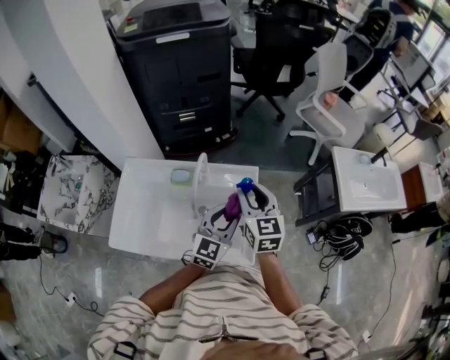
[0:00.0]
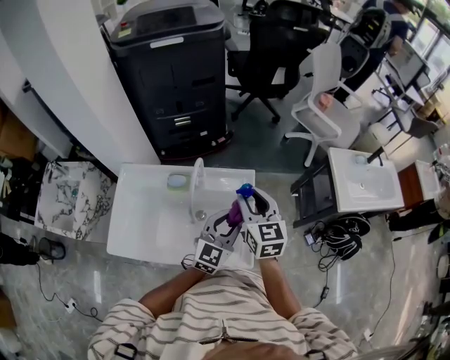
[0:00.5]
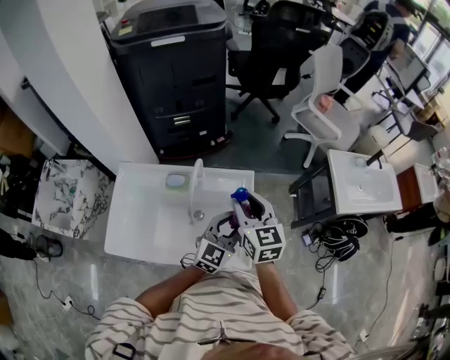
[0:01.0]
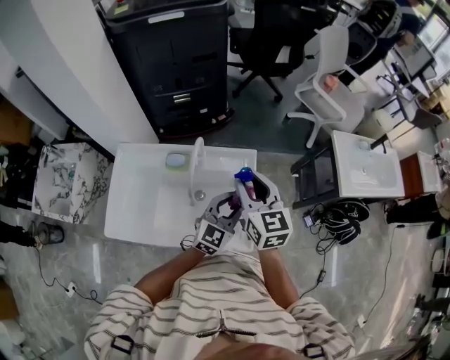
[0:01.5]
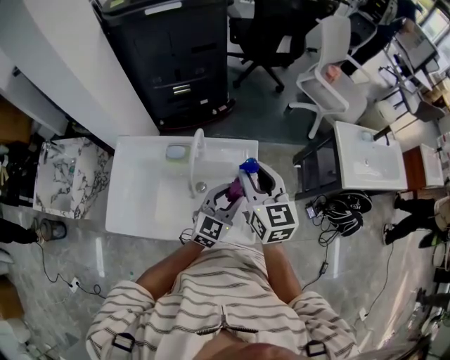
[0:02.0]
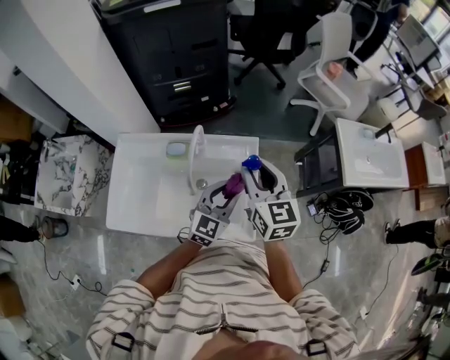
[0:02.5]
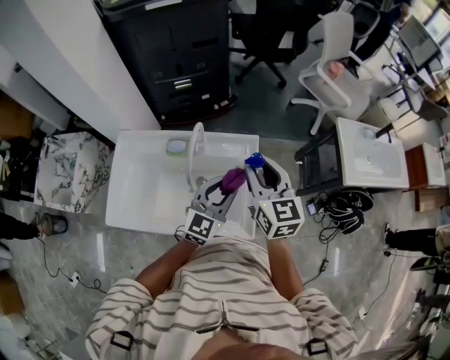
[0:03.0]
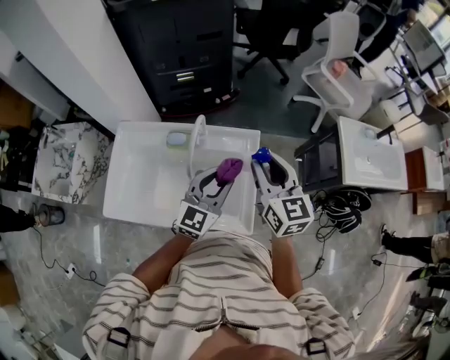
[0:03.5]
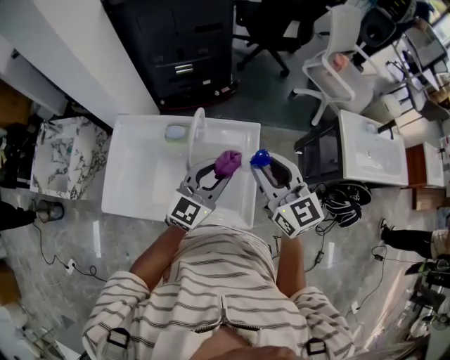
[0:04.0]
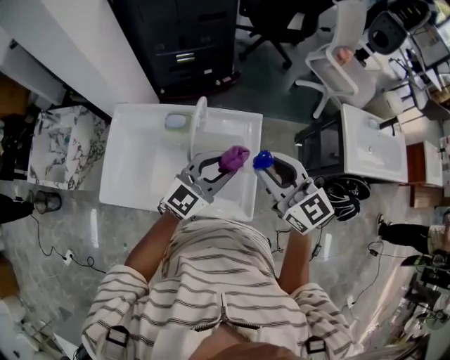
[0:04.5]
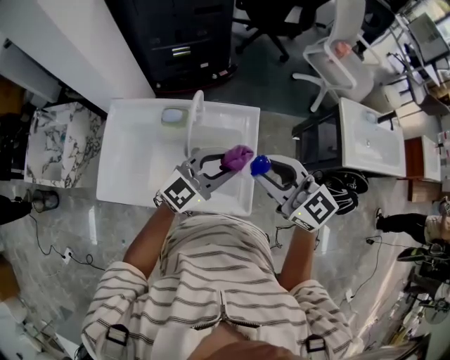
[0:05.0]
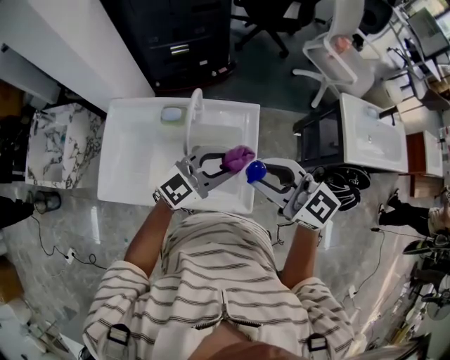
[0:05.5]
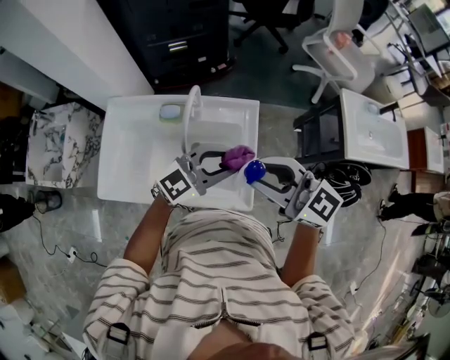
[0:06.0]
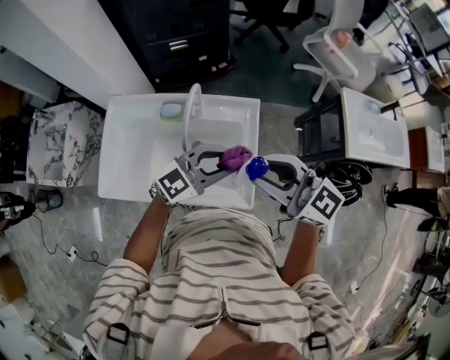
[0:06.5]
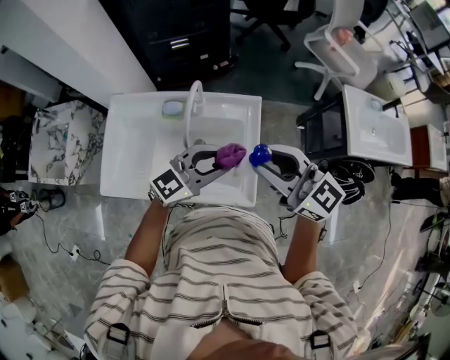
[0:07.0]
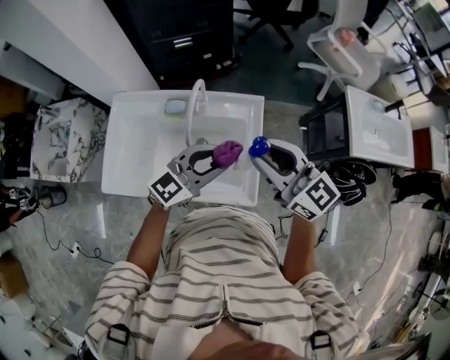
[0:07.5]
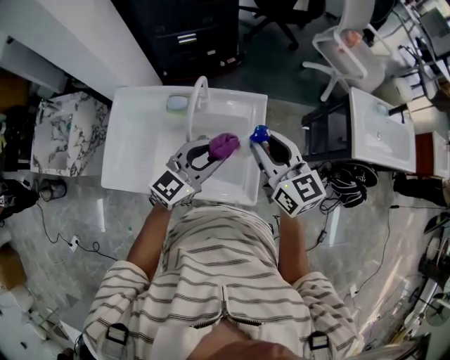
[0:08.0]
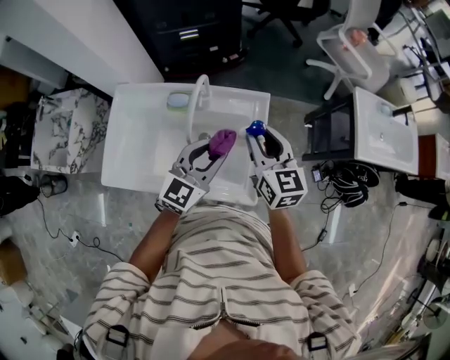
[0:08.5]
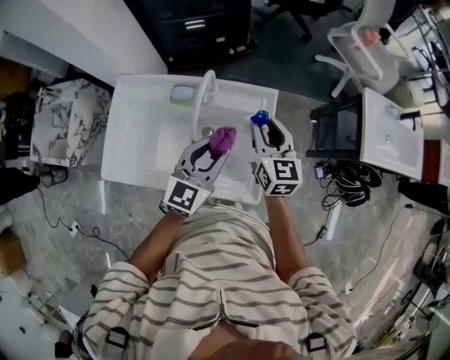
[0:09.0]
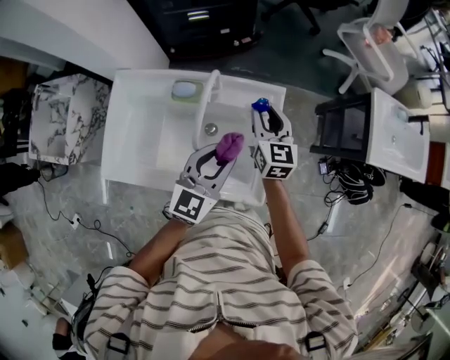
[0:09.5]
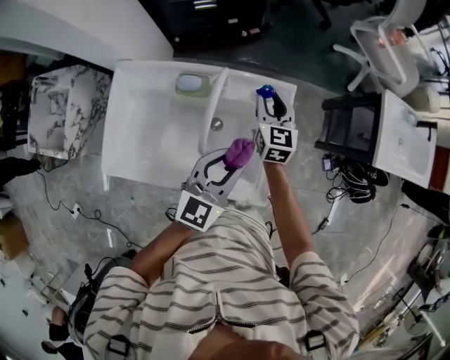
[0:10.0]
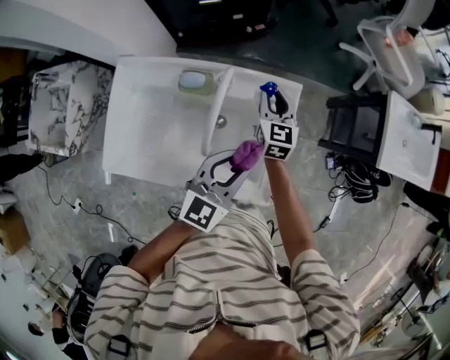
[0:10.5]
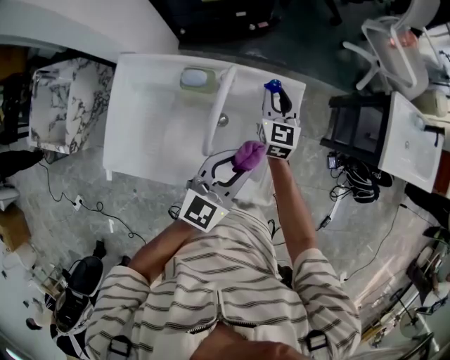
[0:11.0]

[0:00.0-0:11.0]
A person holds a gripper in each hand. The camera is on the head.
0:00.0 to 0:02.0: The grippers make only small movements.
0:02.0 to 0:03.5: The left gripper goes about 5 cm upward.
0:03.5 to 0:05.5: The right gripper ends up roughly 10 cm from where it was, and swivels approximately 40 degrees; the left gripper swivels roughly 30 degrees.
0:05.5 to 0:07.5: The grippers stay close to where they were, moving slightly.
0:07.5 to 0:09.0: The right gripper is displaced downward and forward by about 15 cm, and turns by about 30 degrees; the left gripper ends up roughly 5 cm from where it was, and swivels some 30 degrees.
0:09.0 to 0:11.0: The right gripper goes roughly 15 cm downward and forward.

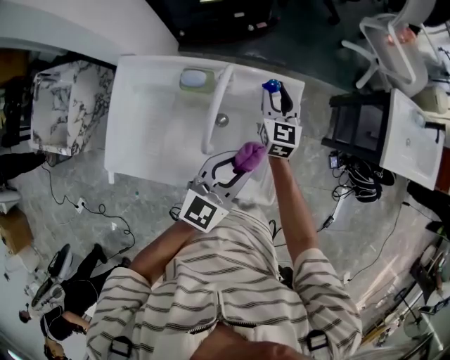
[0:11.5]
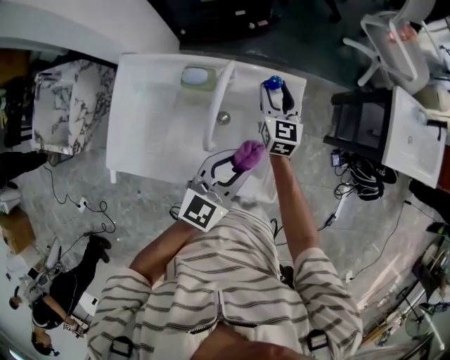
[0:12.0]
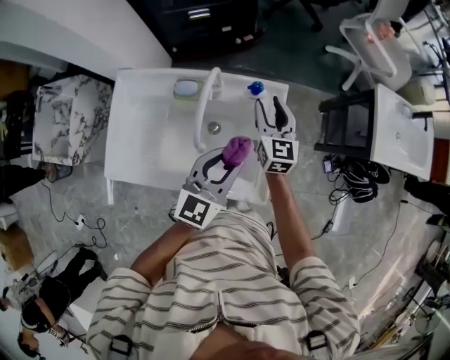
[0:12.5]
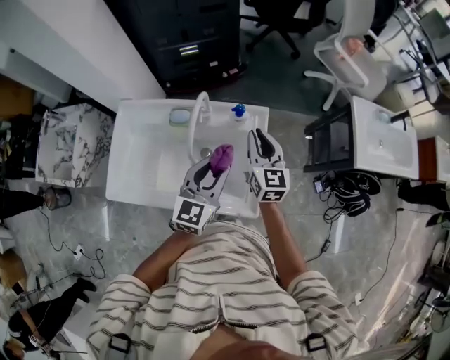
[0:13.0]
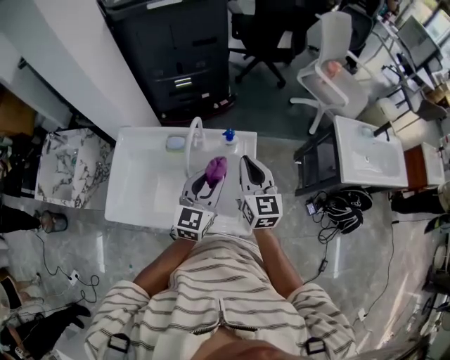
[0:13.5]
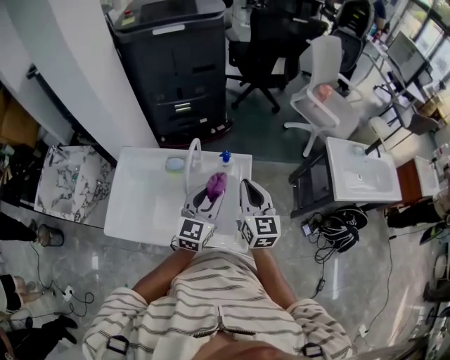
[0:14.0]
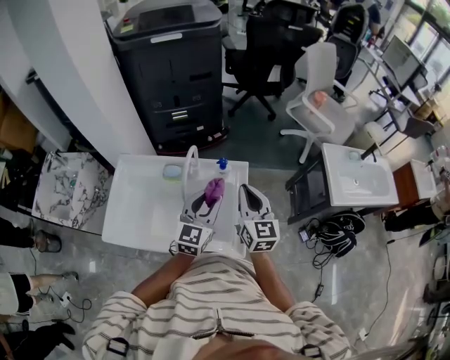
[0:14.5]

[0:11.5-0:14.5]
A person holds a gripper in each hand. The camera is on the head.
0:11.5 to 0:13.0: The right gripper travels upward, backward and to the right by roughly 15 cm.
0:13.0 to 0:14.5: The right gripper shifts some 10 cm upward and backward.

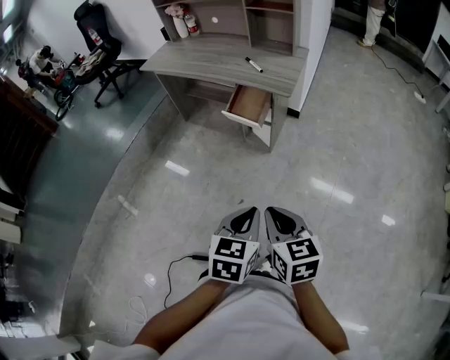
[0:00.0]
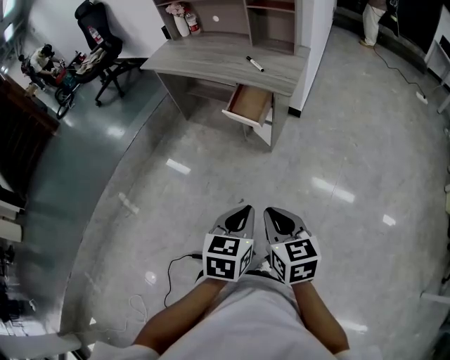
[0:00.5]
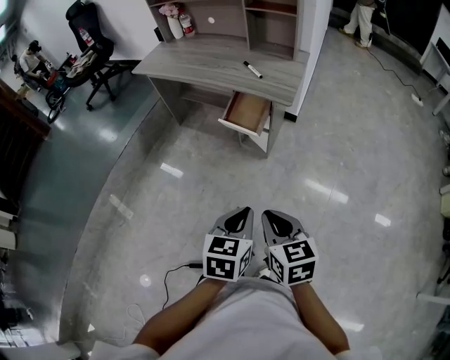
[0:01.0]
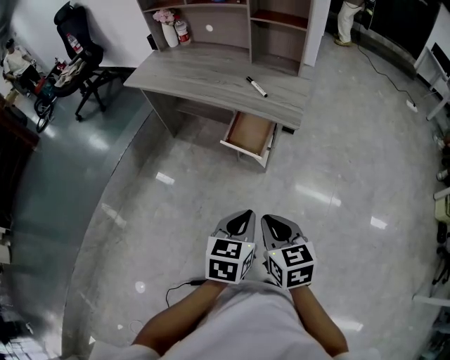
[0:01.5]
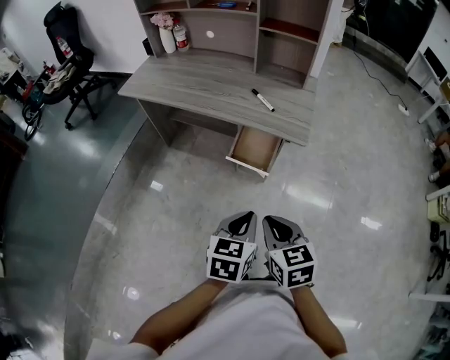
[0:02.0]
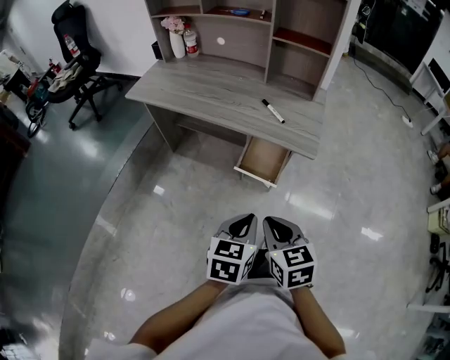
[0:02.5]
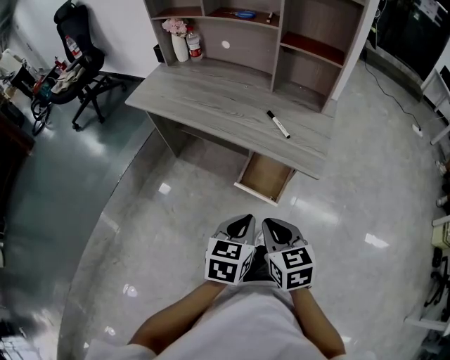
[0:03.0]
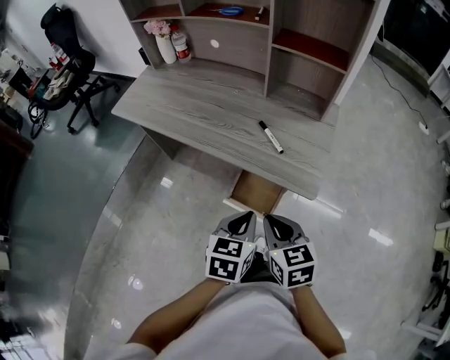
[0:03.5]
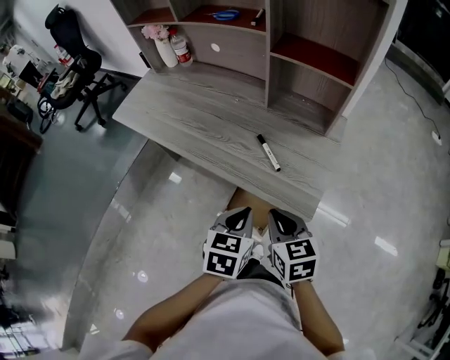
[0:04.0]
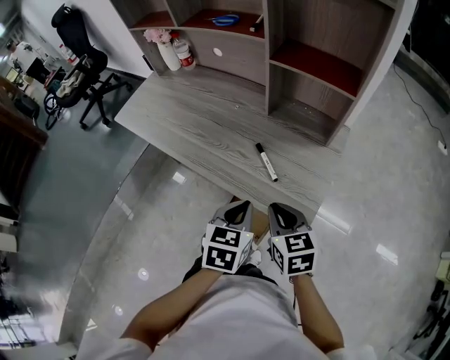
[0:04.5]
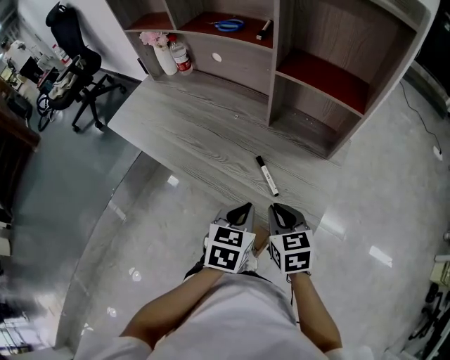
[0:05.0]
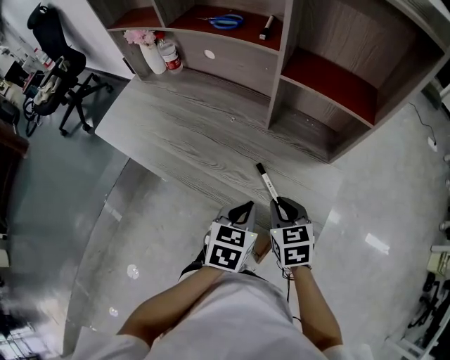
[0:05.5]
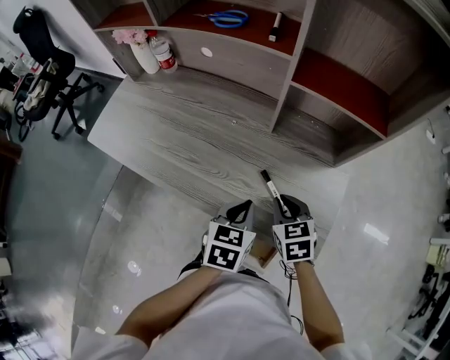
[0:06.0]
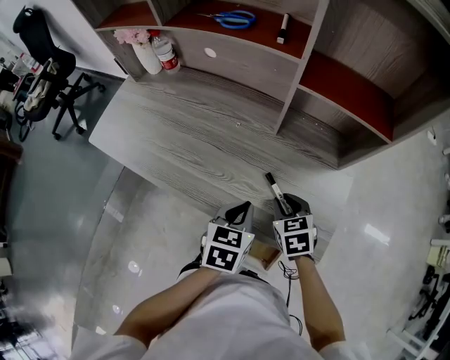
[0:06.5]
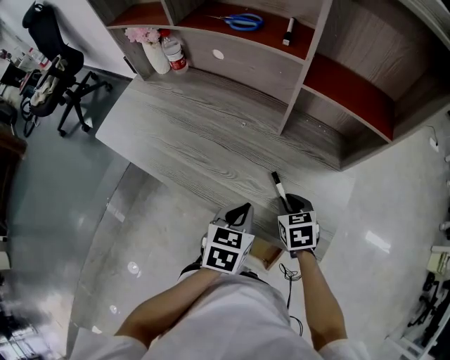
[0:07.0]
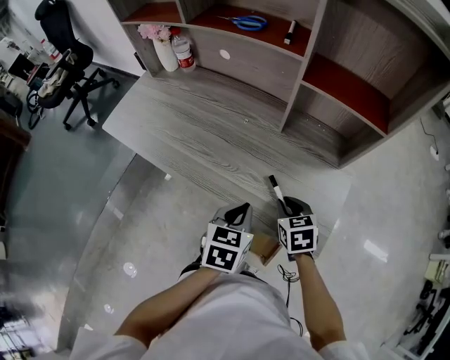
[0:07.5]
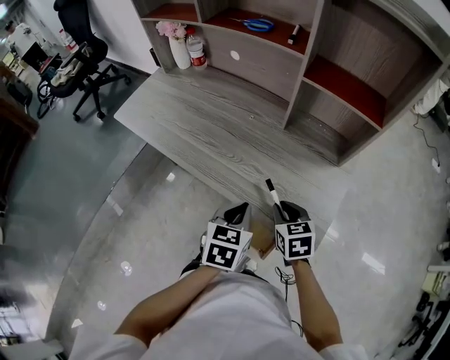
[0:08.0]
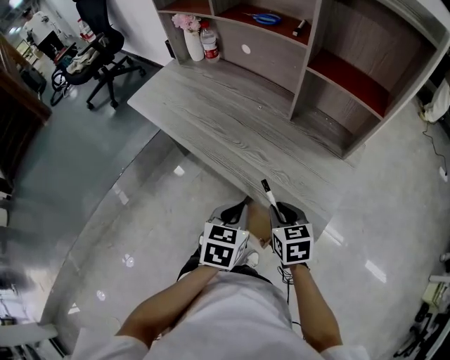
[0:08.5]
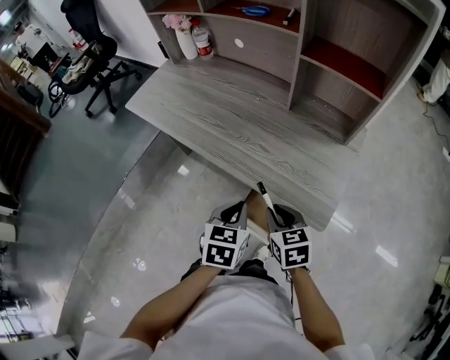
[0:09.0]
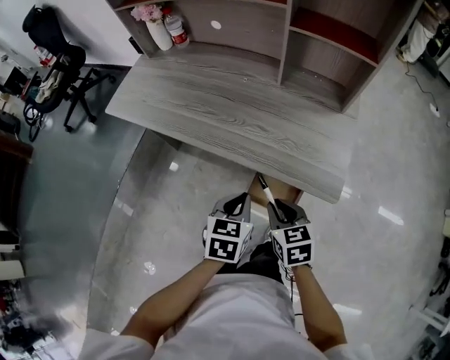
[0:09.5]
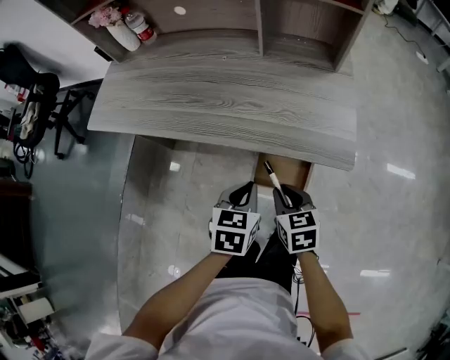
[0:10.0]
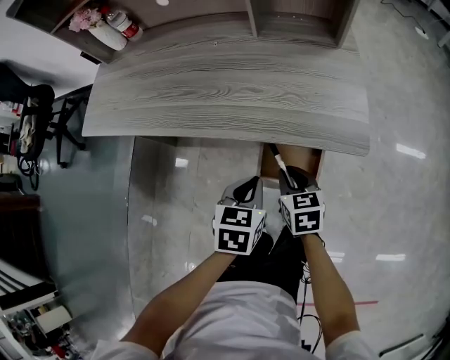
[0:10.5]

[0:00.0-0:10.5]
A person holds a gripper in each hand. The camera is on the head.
0:00.0 to 0:02.0: The grippers both shift forward and to the left by approximately 25 cm.
0:02.0 to 0:04.0: Both grippers move forward, roughly 30 cm.
0:04.0 to 0:06.5: The right gripper goes roughly 20 cm forward and downward. Meanwhile the left gripper goes some 15 cm forward.
0:06.5 to 0:08.5: The two grippers go roughly 15 cm backward.
0:08.5 to 0:10.5: Both grippers travel together downward, approximately 10 cm. The right gripper turns by approximately 30 degrees, while the left gripper changes its angle by approximately 30 degrees.

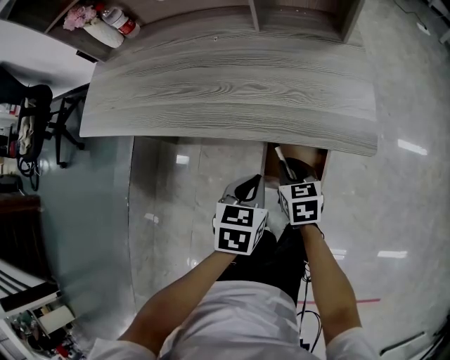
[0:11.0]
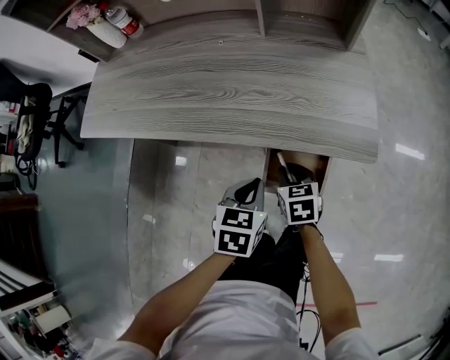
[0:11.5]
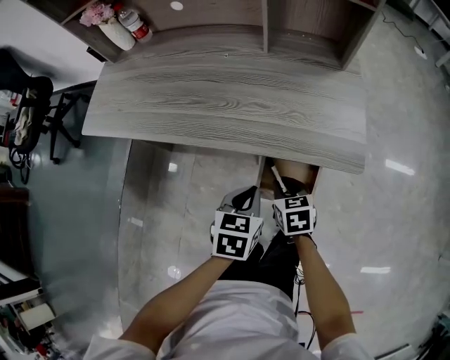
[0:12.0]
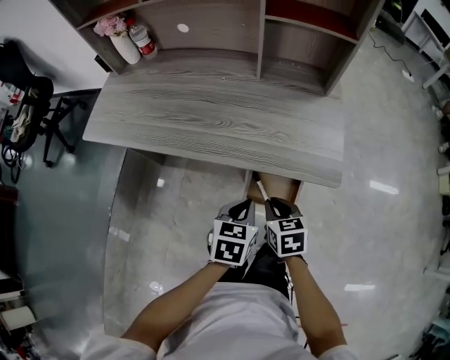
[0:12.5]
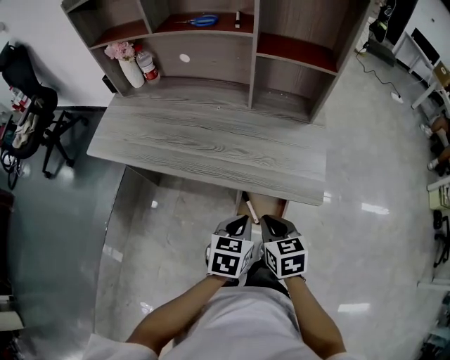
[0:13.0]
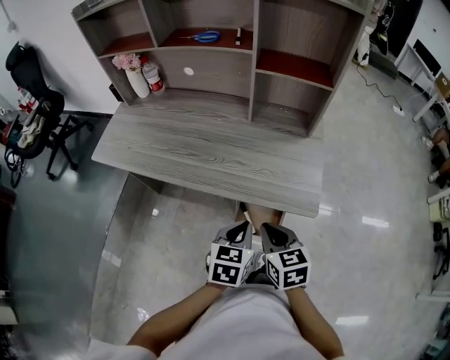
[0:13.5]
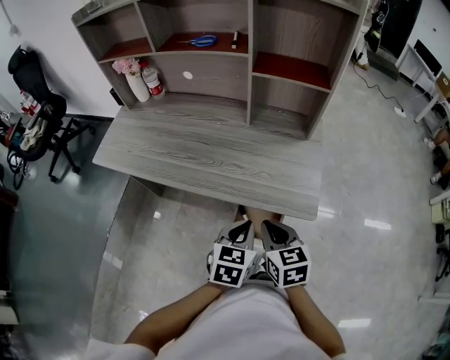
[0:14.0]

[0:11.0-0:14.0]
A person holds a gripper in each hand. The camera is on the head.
0:11.0 to 0:12.5: The right gripper travels upward by approximately 10 cm. The left gripper changes place by some 5 cm.
0:12.5 to 0:14.0: The left gripper travels upward by approximately 10 cm. Meanwhile the right gripper travels upward by approximately 15 cm.
